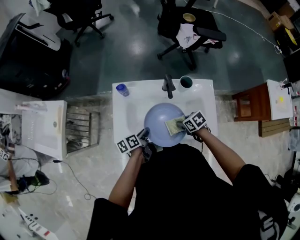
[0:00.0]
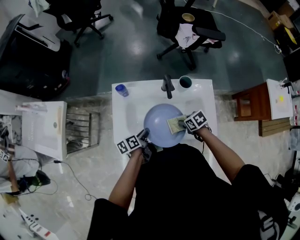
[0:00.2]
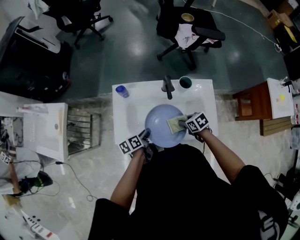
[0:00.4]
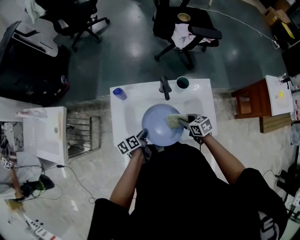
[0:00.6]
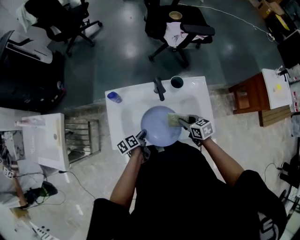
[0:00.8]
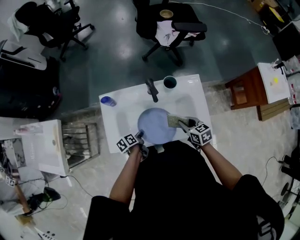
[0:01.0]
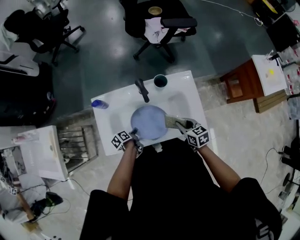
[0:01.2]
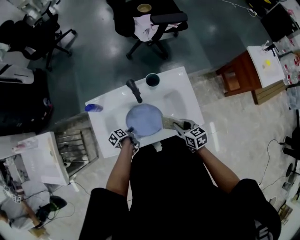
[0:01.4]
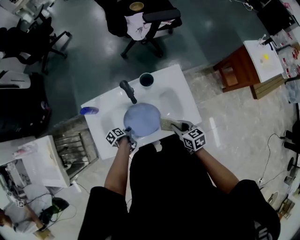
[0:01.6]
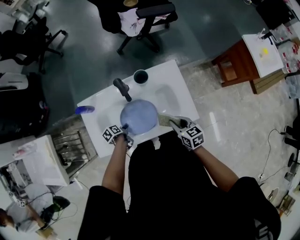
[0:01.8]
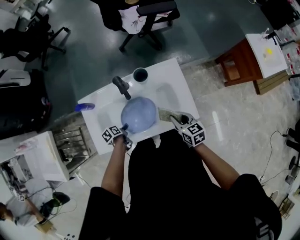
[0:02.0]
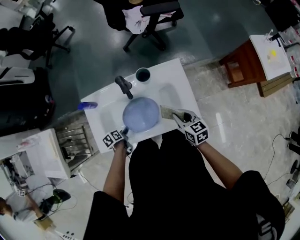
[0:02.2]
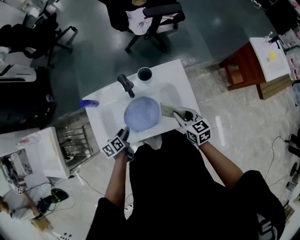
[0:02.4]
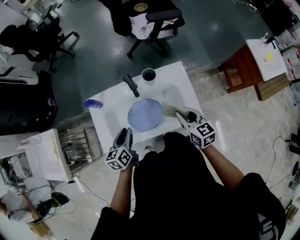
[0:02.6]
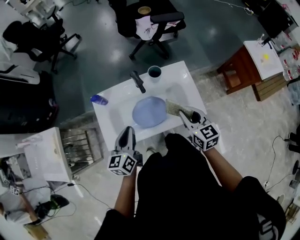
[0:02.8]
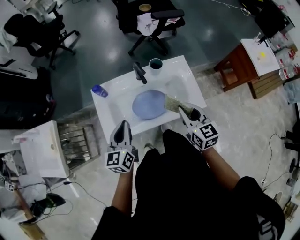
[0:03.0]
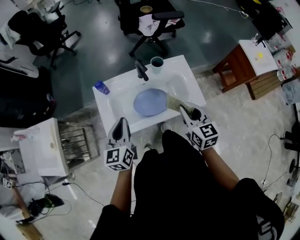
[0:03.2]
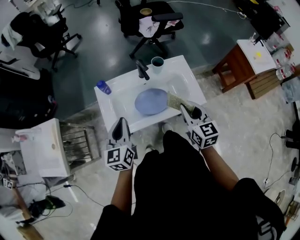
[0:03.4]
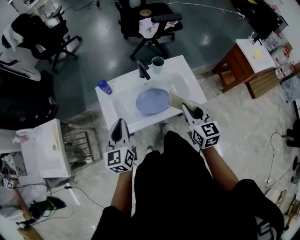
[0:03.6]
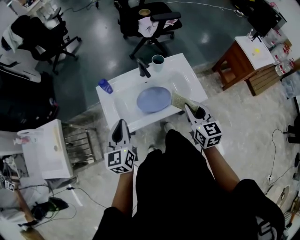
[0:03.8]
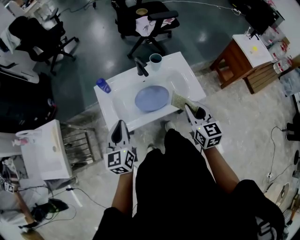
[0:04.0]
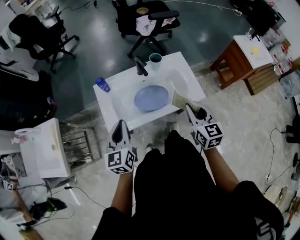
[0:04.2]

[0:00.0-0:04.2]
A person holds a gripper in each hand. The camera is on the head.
0:00.0 to 0:01.4: The left gripper travels downward by approximately 15 cm, and changes its angle by roughly 20 degrees. Meanwhile the right gripper changes place by roughly 10 cm, and changes its angle by about 40 degrees.
0:01.4 to 0:02.8: The right gripper heads upward, covering roughly 15 cm, and rotates roughly 20 degrees. Meanwhile the left gripper goes about 30 cm upward, angles its fingers upward, by approximately 40 degrees, and opens and closes again.
0:02.8 to 0:04.2: The left gripper heads to the left and backward, covering about 10 cm. Meanwhile the right gripper goes about 10 cm backward.

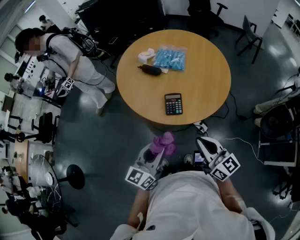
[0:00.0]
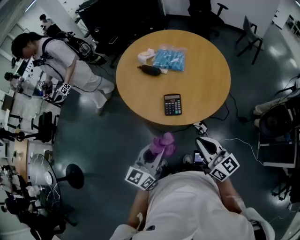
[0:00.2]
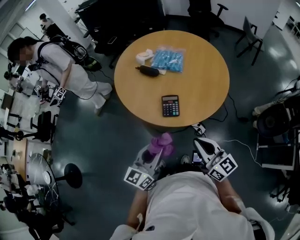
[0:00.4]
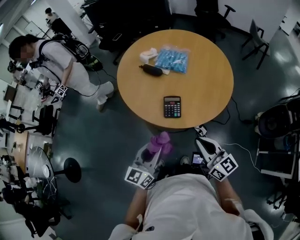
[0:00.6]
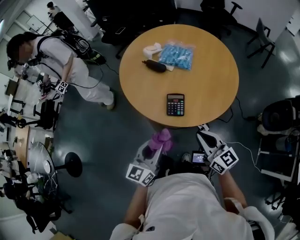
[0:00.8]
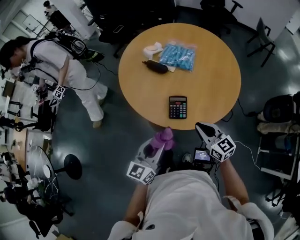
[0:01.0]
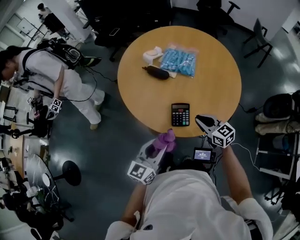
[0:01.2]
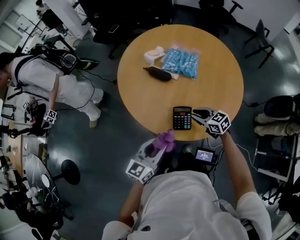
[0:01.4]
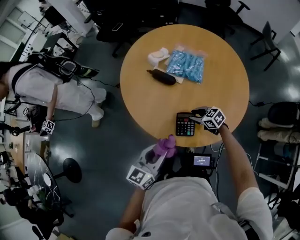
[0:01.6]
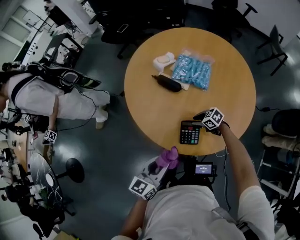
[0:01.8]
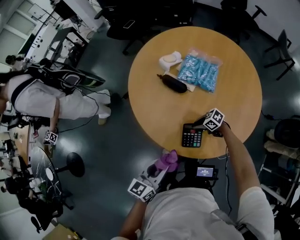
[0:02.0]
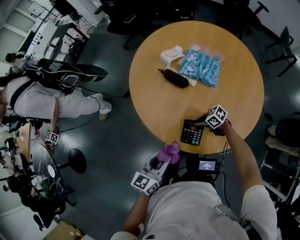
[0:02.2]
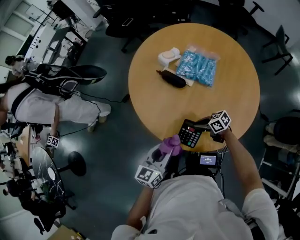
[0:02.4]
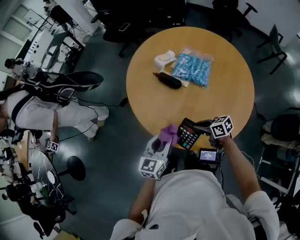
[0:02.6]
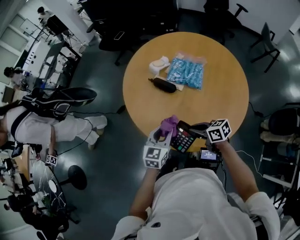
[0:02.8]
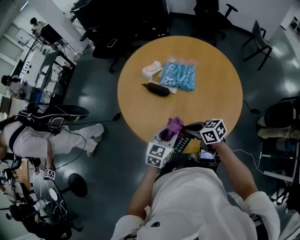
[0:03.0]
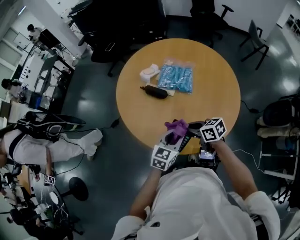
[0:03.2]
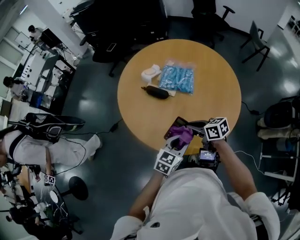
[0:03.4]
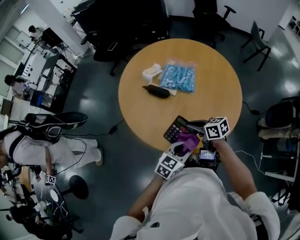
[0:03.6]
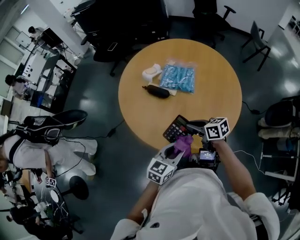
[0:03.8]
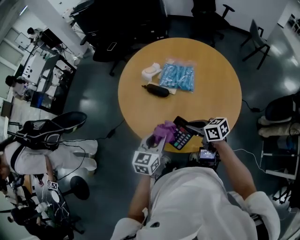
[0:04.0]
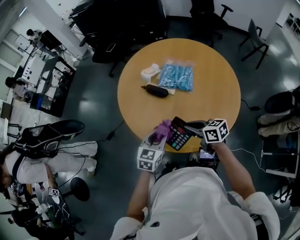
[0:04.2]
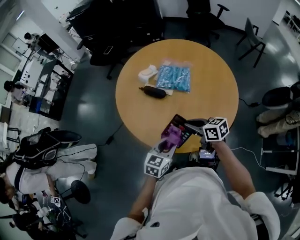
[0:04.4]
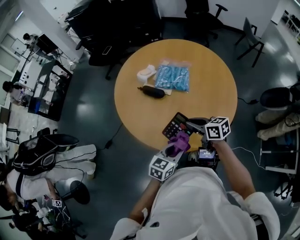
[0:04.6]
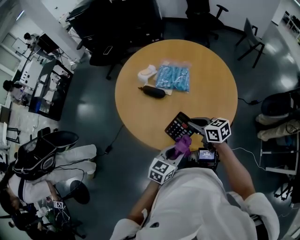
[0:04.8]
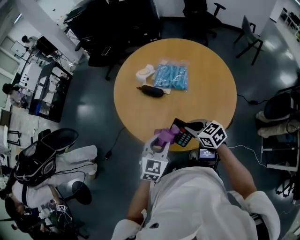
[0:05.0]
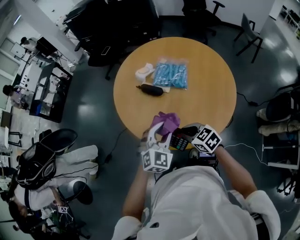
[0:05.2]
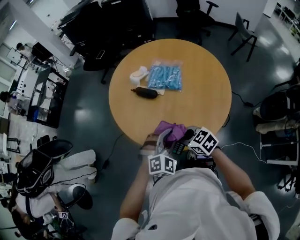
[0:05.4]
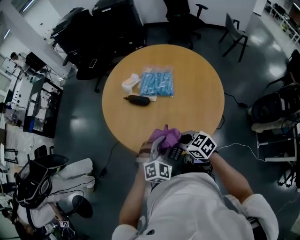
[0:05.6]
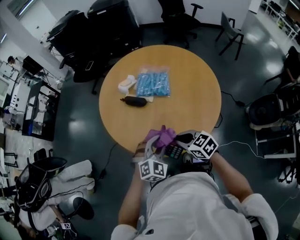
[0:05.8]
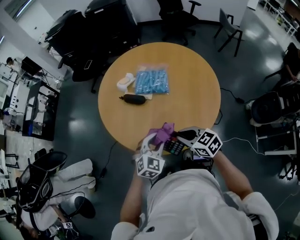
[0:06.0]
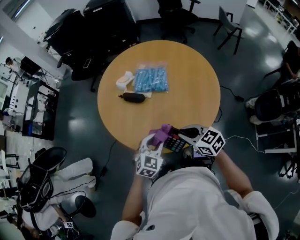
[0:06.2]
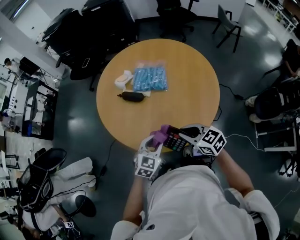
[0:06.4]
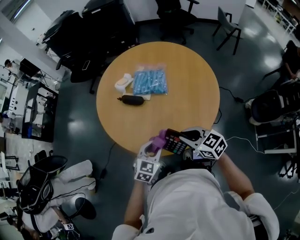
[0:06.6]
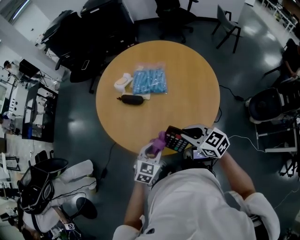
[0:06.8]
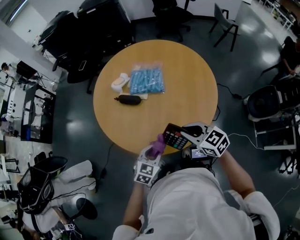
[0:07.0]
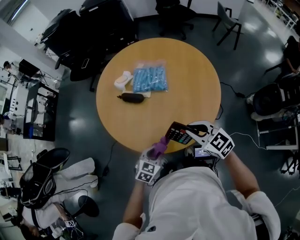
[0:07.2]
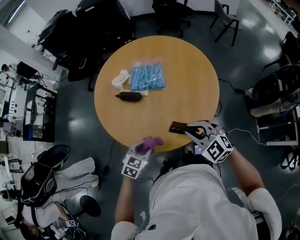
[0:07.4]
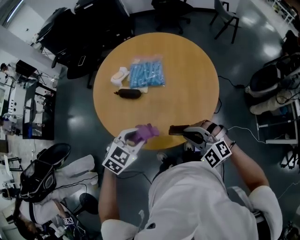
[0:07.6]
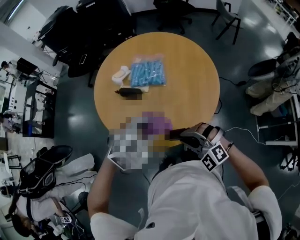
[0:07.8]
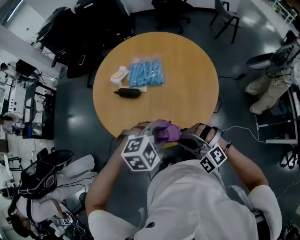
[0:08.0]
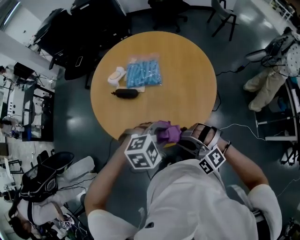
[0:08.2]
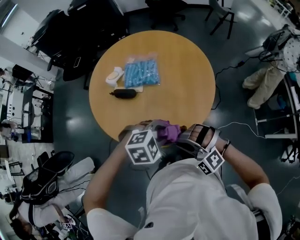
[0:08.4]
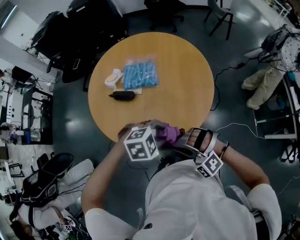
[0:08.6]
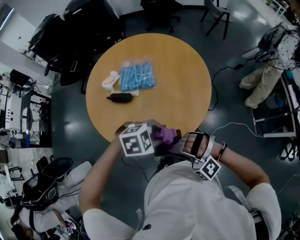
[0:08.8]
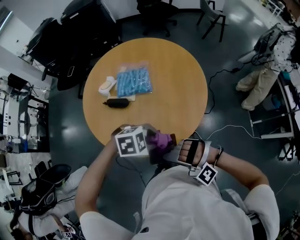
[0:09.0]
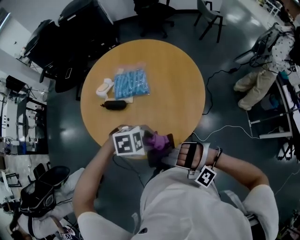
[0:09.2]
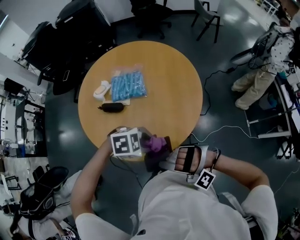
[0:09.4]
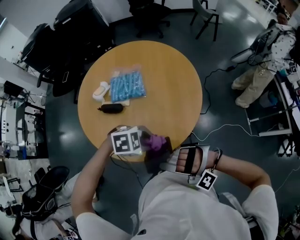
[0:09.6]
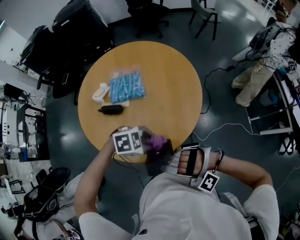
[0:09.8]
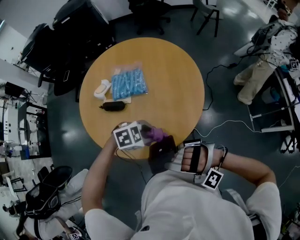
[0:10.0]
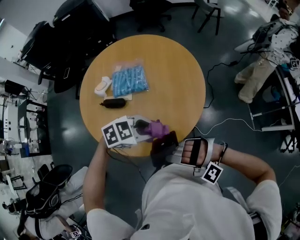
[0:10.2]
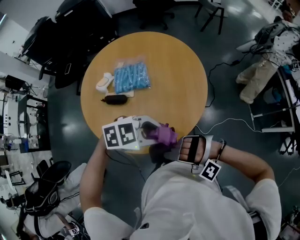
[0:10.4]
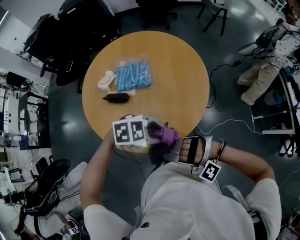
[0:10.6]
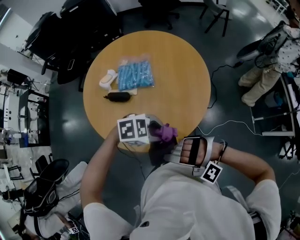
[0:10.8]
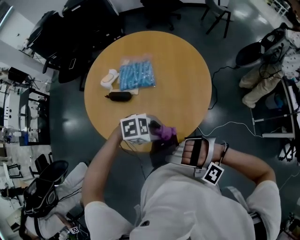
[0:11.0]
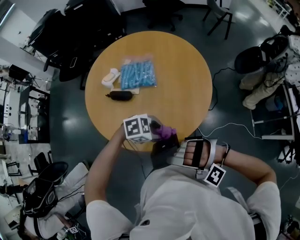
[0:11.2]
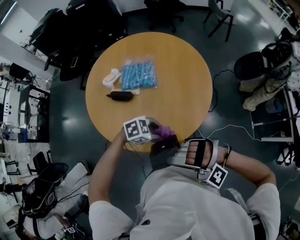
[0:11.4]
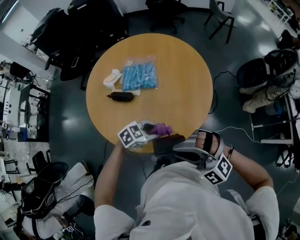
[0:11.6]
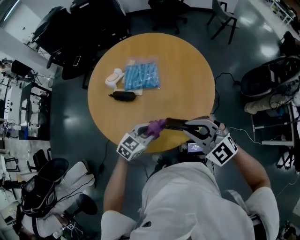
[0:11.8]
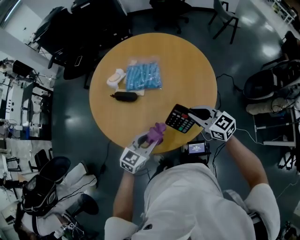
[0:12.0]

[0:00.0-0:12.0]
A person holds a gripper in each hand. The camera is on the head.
0:00.0 to 0:01.6: The right gripper travels forward and downward by approximately 40 cm, tips its fingers downward by roughly 40 degrees, and opens; the left gripper moves forward and downward, approximately 20 cm.
0:01.6 to 0:03.0: The right gripper heads upward, covering some 15 cm, and changes its angle by roughly 20 degrees. The left gripper changes place by approximately 15 cm.
0:03.0 to 0:04.4: The left gripper moves left and right over about 10 cm, changing direction 2 times.
0:04.4 to 0:06.0: The left gripper moves some 5 cm backward and comes back, and rotates about 40 degrees; the right gripper heads backward, covering approximately 5 cm.
0:06.0 to 0:07.6: The right gripper shifts by roughly 5 cm, and rotates around the line of its fingers by some 50 degrees, counterclockwise from behind. The left gripper is displaced upward by some 5 cm, and rotates roughly 20 degrees.
0:07.6 to 0:09.0: The right gripper ends up some 10 cm from where it was, and swivels approximately 40 degrees. Meanwhile the left gripper shifts by about 10 cm, and turns by roughly 50 degrees.
0:09.0 to 0:10.4: The left gripper goes roughly 5 cm upward.
0:10.4 to 0:12.0: The left gripper is displaced downward by approximately 10 cm, and turns by some 60 degrees. Meanwhile the right gripper shifts by roughly 20 cm, and rolls clockwise, seen from behind, by about 100 degrees.

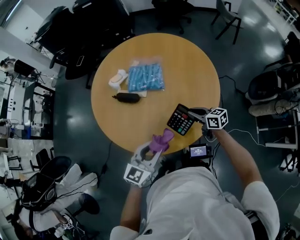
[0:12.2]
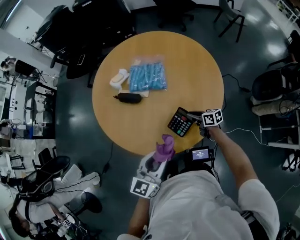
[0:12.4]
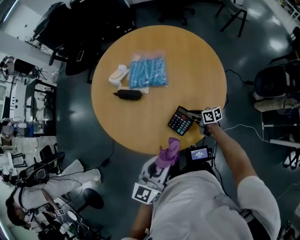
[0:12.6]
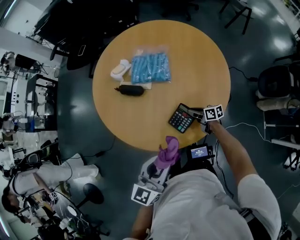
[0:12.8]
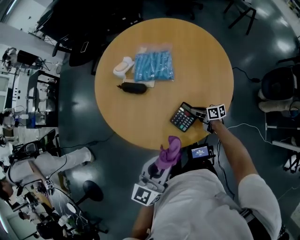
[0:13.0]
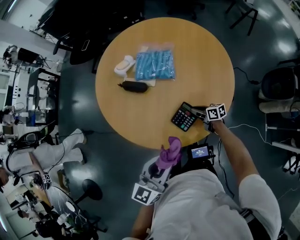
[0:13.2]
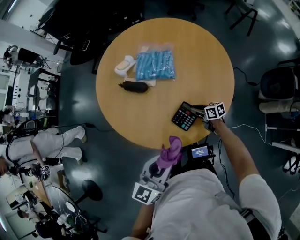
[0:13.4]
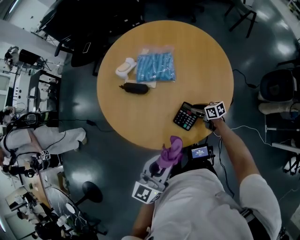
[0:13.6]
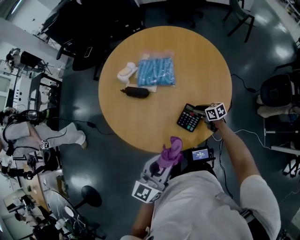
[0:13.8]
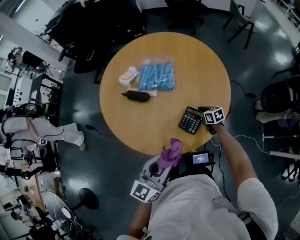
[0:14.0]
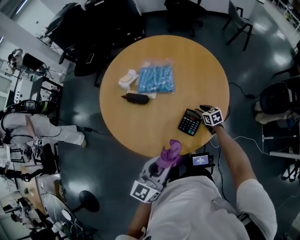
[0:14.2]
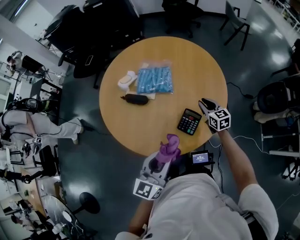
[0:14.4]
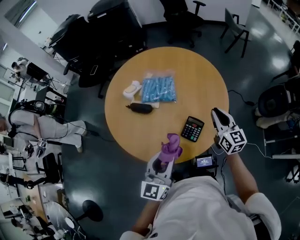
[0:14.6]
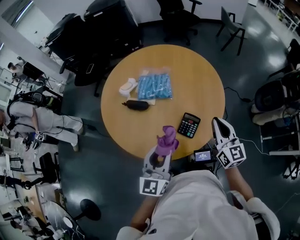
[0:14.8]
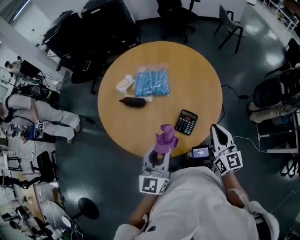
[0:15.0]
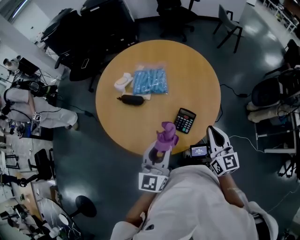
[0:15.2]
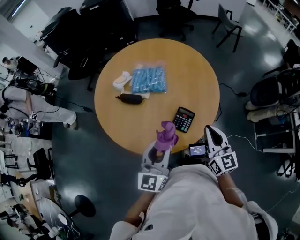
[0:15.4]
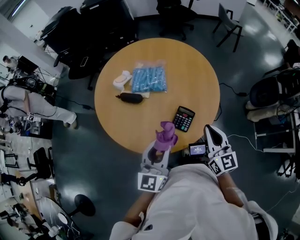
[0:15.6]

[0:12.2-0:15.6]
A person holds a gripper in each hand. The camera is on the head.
0:12.2 to 0:13.8: The left gripper moves some 5 cm, while the right gripper travels downward by roughly 15 cm, and opens its fingers.
0:13.8 to 0:15.6: The right gripper goes about 35 cm upward and backward, angles its fingers upward, by some 30 degrees, and closes its fingers, while the left gripper moves approximately 5 cm.

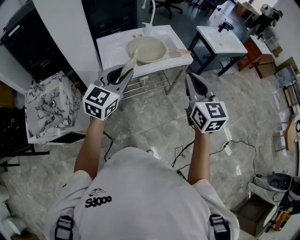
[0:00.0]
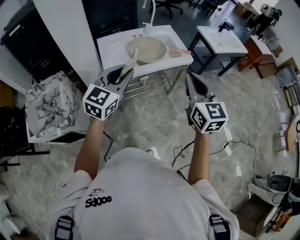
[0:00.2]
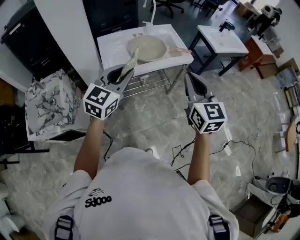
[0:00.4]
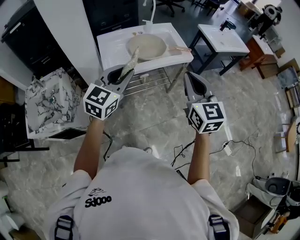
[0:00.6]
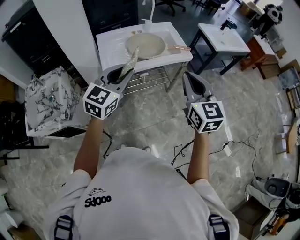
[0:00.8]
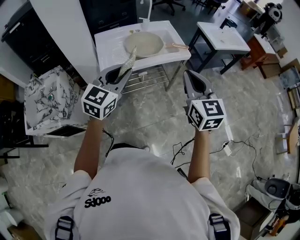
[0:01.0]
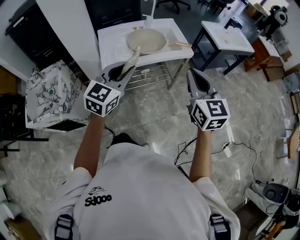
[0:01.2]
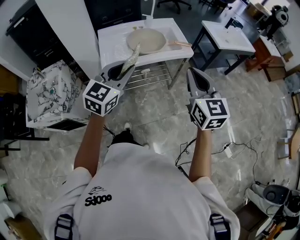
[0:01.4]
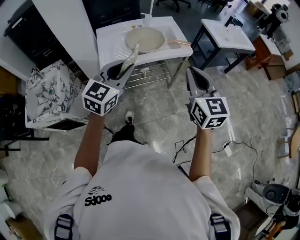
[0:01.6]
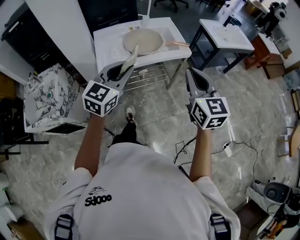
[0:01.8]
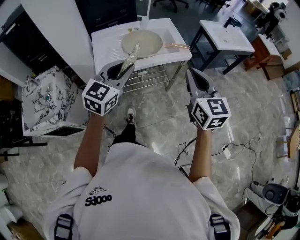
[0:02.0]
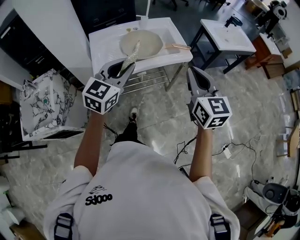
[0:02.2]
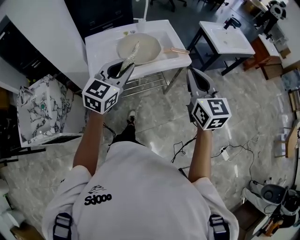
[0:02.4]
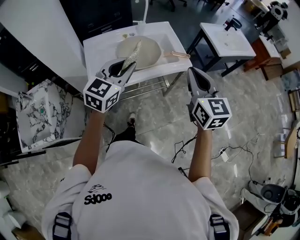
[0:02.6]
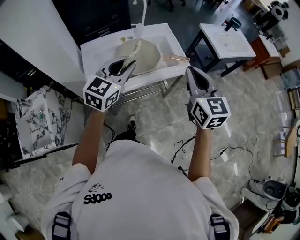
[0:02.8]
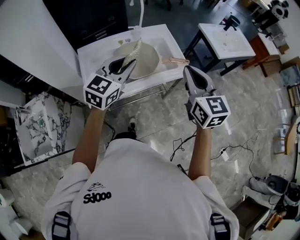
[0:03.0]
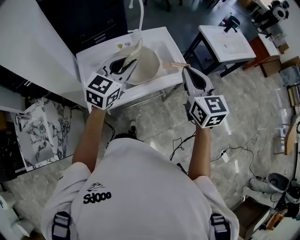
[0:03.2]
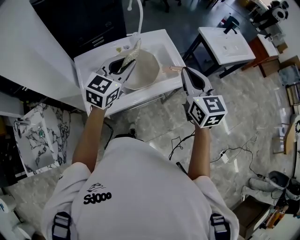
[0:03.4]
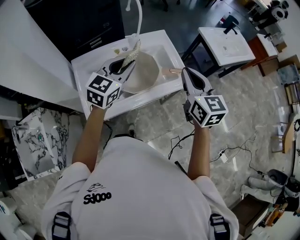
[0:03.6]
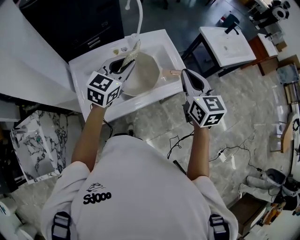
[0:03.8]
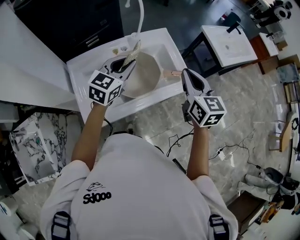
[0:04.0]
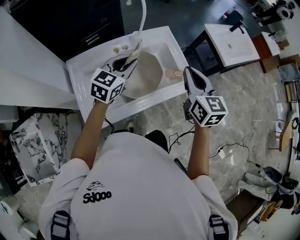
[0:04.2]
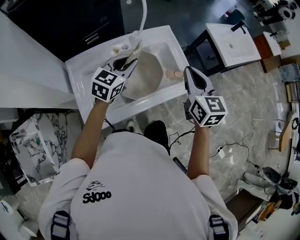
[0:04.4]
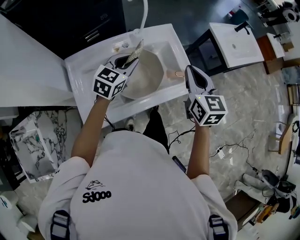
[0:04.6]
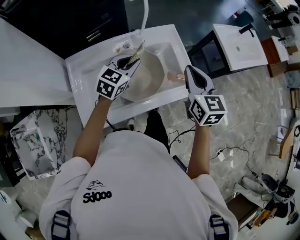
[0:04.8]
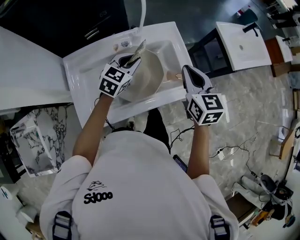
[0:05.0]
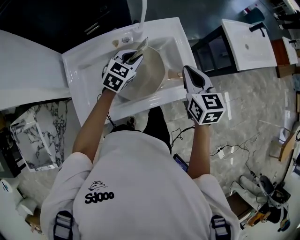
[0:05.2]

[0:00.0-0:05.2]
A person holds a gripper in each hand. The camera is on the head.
0:00.0 to 0:01.8: The two grippers go roughly 5 cm to the right.
0:01.8 to 0:03.4: The two grippers go approximately 25 cm forward.
0:03.4 to 0:05.2: The right gripper travels forward and downward by some 20 cm. The left gripper shifts approximately 25 cm downward and forward, and changes its angle by some 20 degrees.
